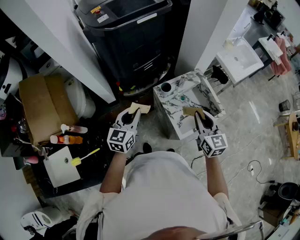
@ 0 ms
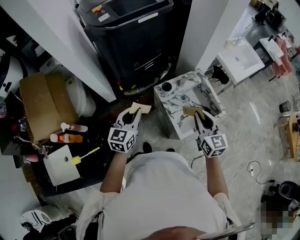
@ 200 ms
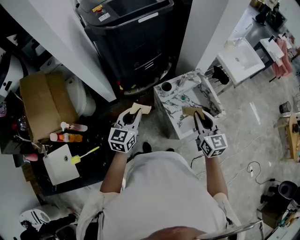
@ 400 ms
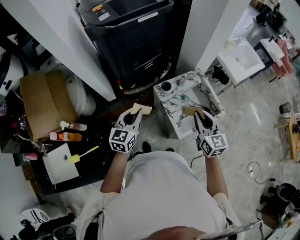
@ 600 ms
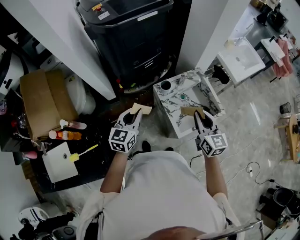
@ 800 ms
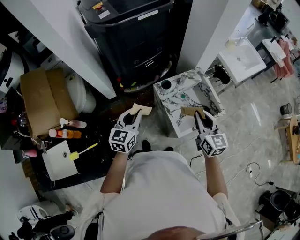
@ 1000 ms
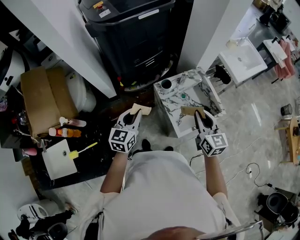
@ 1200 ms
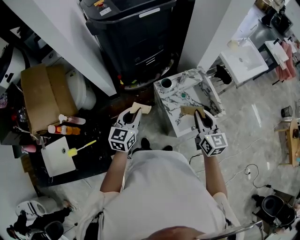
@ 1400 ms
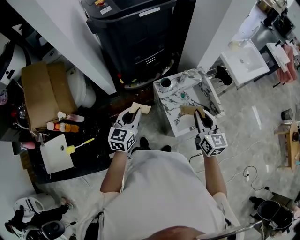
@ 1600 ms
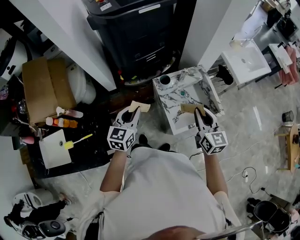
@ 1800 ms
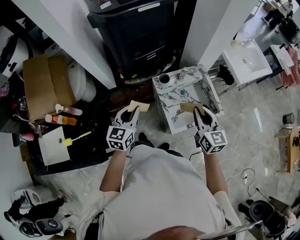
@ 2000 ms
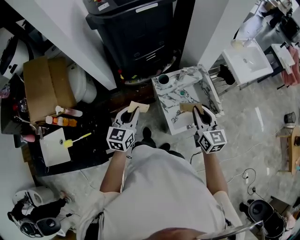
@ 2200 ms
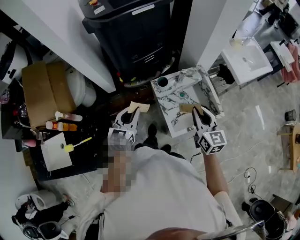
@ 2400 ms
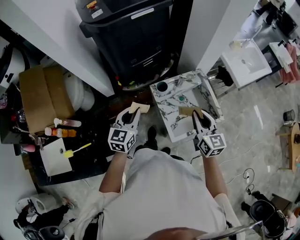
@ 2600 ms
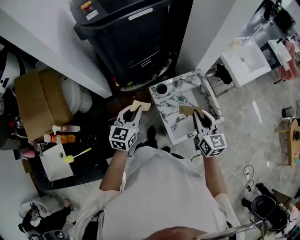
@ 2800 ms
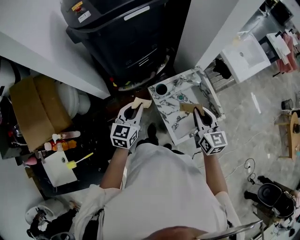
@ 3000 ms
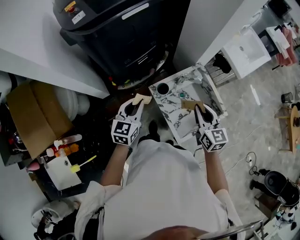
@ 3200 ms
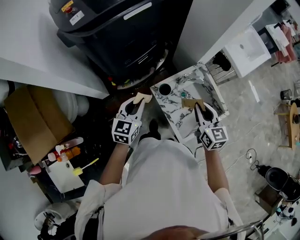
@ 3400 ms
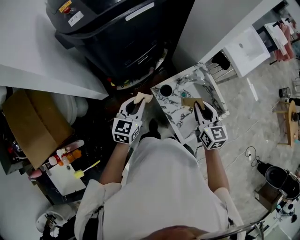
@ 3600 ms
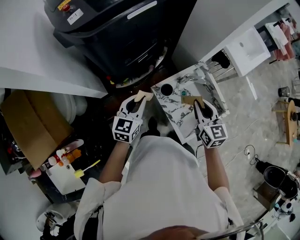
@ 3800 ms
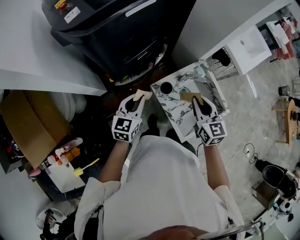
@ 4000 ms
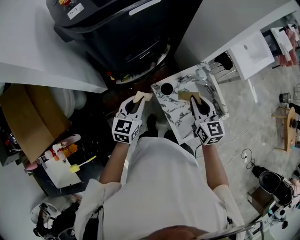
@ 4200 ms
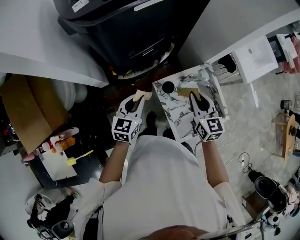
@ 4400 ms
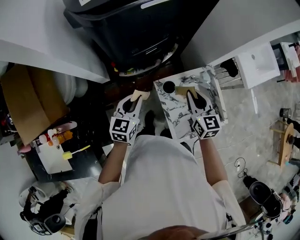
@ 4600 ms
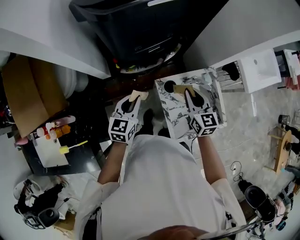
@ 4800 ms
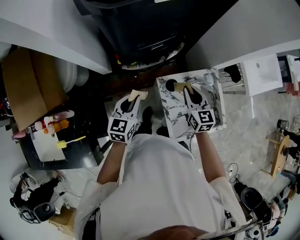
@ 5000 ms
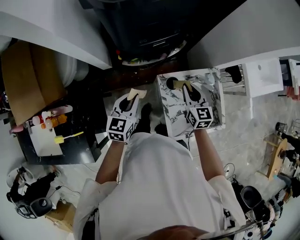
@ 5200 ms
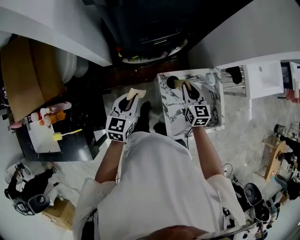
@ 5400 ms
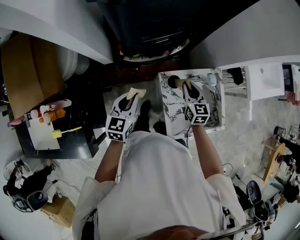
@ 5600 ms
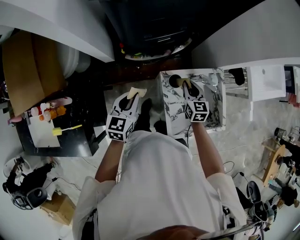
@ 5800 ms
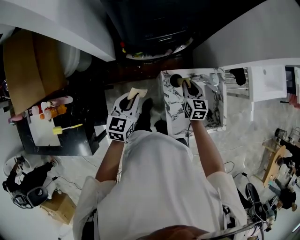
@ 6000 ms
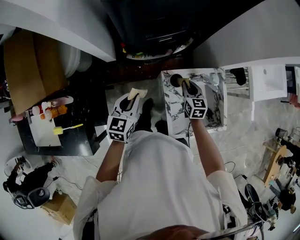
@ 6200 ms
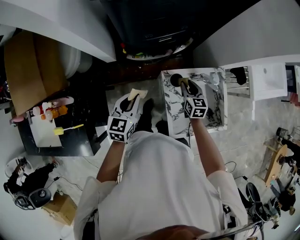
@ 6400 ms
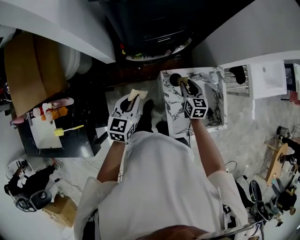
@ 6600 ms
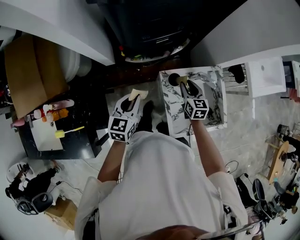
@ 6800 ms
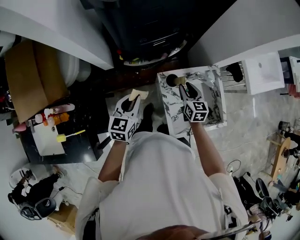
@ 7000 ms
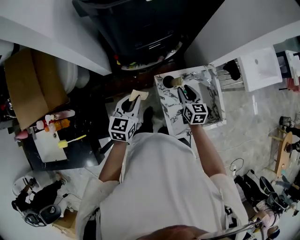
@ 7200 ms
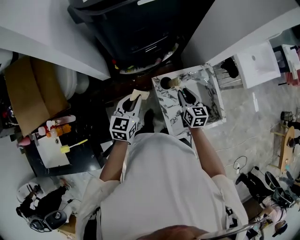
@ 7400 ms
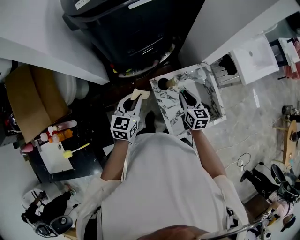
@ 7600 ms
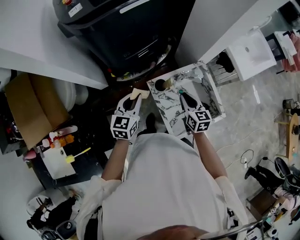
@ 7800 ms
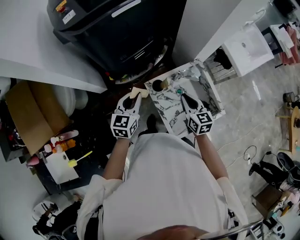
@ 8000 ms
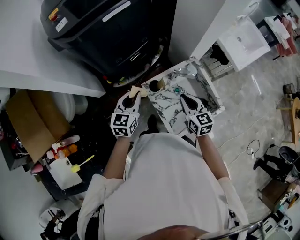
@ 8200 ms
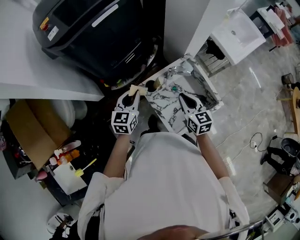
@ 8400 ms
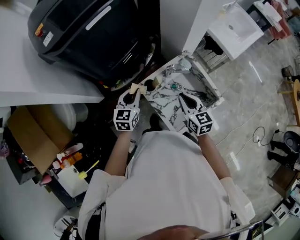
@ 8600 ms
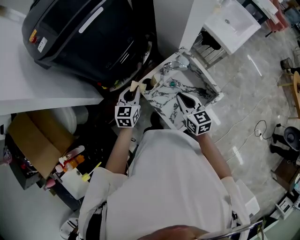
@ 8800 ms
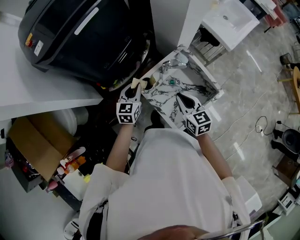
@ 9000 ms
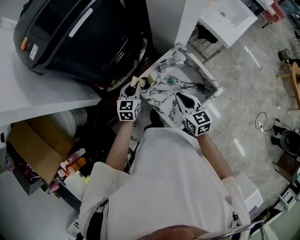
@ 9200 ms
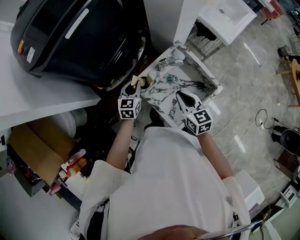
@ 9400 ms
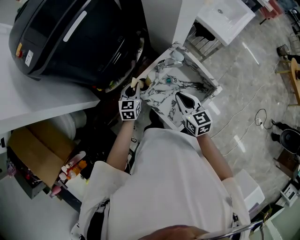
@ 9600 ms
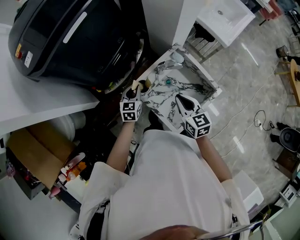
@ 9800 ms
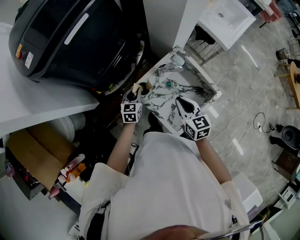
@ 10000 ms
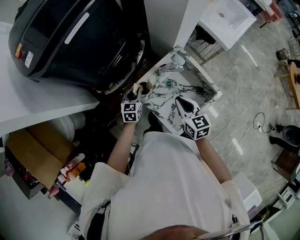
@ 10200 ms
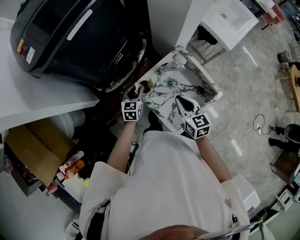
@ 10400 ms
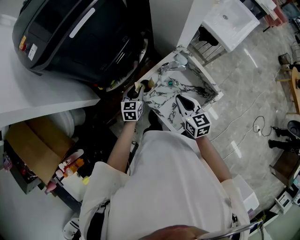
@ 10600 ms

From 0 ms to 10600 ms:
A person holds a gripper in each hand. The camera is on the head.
From 0 ms to 1600 ms: The grippers stay close to where they were, moving slightly.
From 1600 ms to 3000 ms: The grippers both shift forward by some 10 cm.
From 3000 ms to 4600 ms: The right gripper heads forward and to the left, covering some 15 cm. Meanwhile the left gripper is displaced forward and to the left by some 10 cm.
From 4600 ms to 6000 ms: The right gripper is displaced downward by some 15 cm. The left gripper shifts by approximately 5 cm.
From 6000 ms to 7600 ms: The right gripper heads backward, upward and to the right, covering approximately 10 cm. Meanwhile the left gripper goes some 5 cm to the right.
From 7600 ms to 9000 ms: The right gripper shifts approximately 10 cm backward and to the right; the left gripper travels to the right, forward and downward by approximately 15 cm.
From 9000 ms to 10600 ms: The left gripper heads downward, covering some 10 cm.

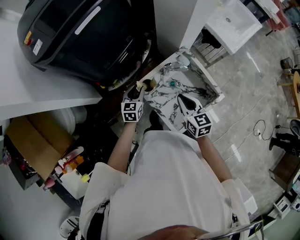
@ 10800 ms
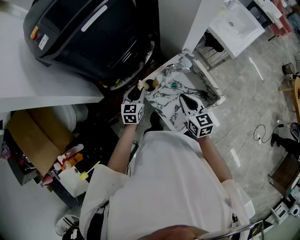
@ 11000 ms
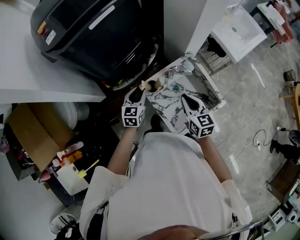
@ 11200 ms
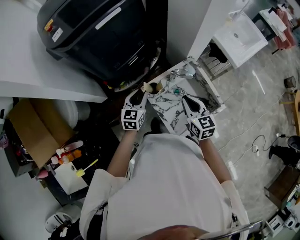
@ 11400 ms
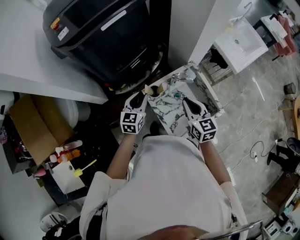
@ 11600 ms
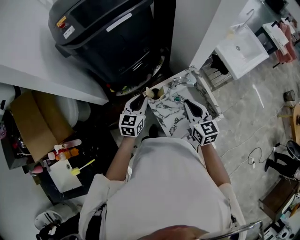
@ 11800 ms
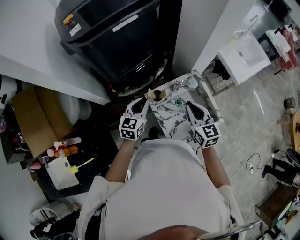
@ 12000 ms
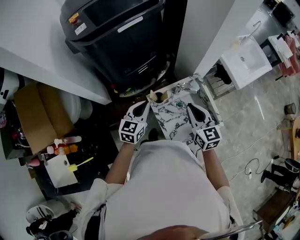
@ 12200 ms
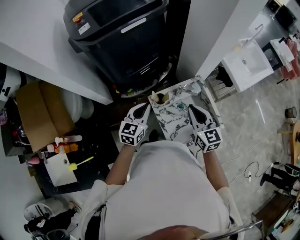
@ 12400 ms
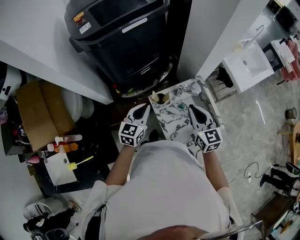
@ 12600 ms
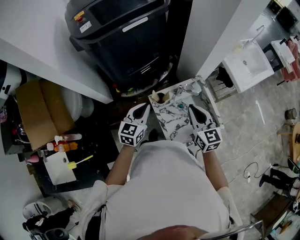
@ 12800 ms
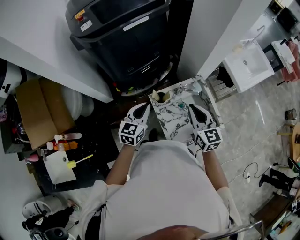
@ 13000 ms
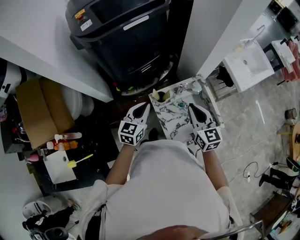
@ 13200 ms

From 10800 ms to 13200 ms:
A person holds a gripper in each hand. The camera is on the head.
From 10800 ms to 12000 ms: The left gripper heads upward, covering roughly 15 cm, and closes its fingers, while the right gripper is displaced upward by roughly 10 cm.
From 12000 ms to 13200 ms: The grippers make only small movements.

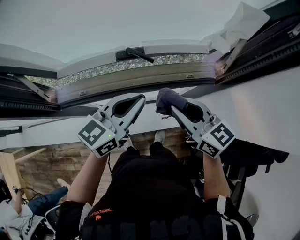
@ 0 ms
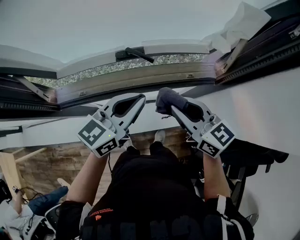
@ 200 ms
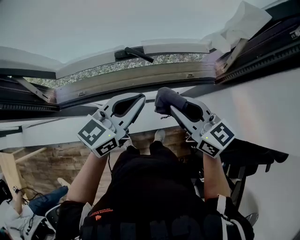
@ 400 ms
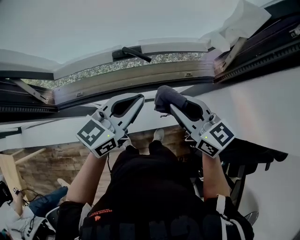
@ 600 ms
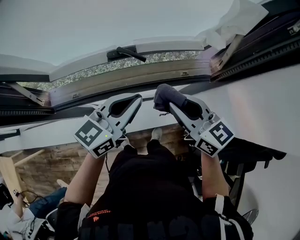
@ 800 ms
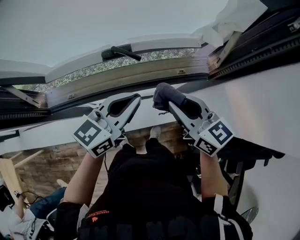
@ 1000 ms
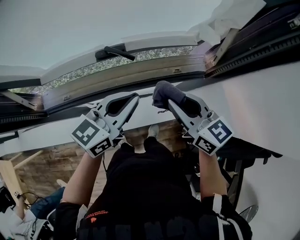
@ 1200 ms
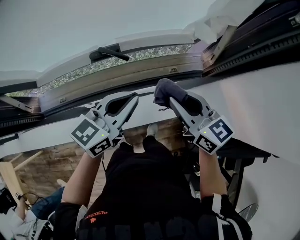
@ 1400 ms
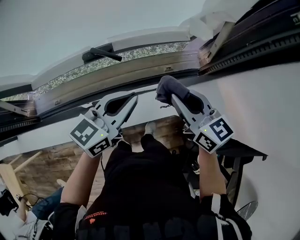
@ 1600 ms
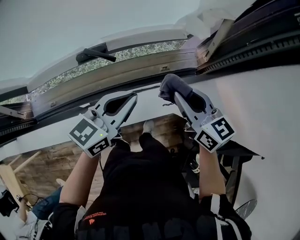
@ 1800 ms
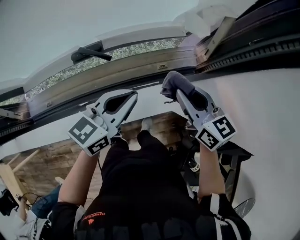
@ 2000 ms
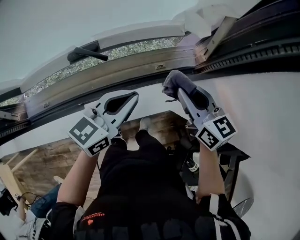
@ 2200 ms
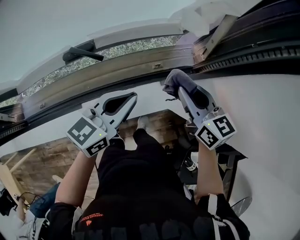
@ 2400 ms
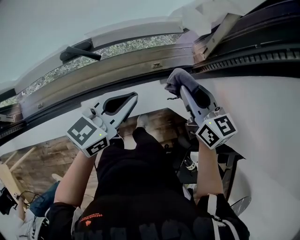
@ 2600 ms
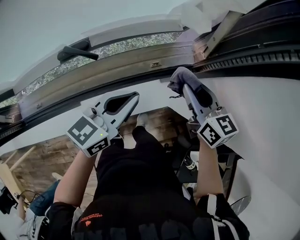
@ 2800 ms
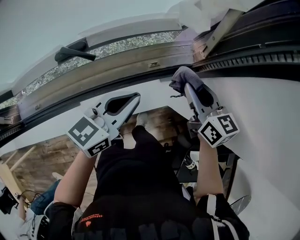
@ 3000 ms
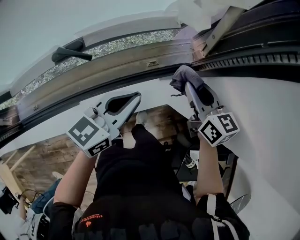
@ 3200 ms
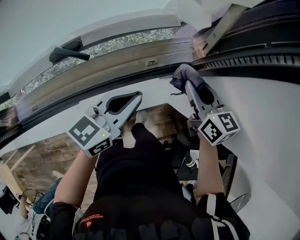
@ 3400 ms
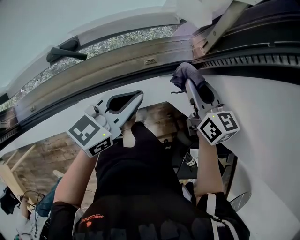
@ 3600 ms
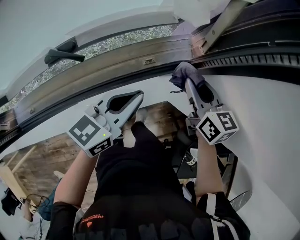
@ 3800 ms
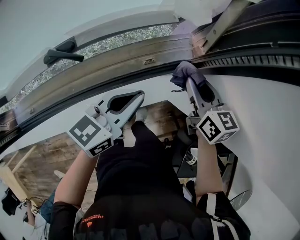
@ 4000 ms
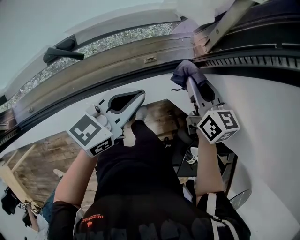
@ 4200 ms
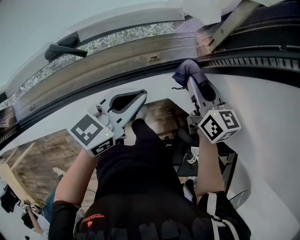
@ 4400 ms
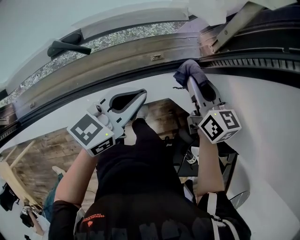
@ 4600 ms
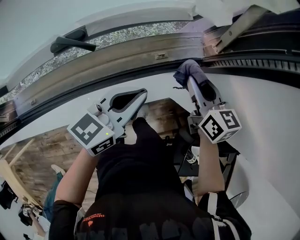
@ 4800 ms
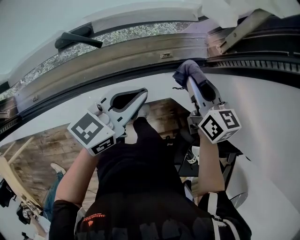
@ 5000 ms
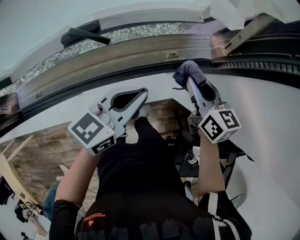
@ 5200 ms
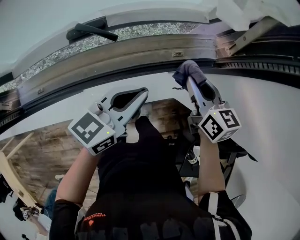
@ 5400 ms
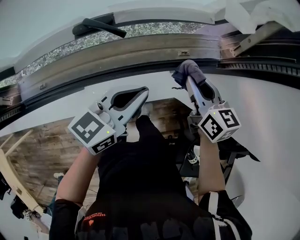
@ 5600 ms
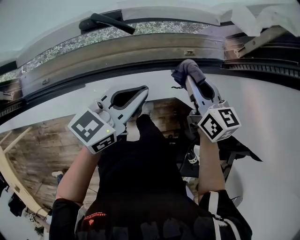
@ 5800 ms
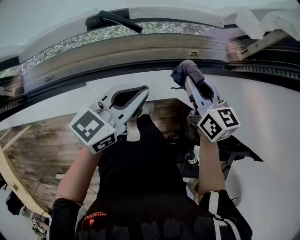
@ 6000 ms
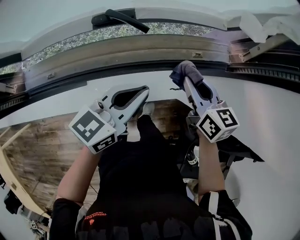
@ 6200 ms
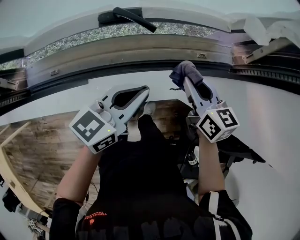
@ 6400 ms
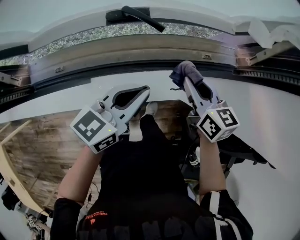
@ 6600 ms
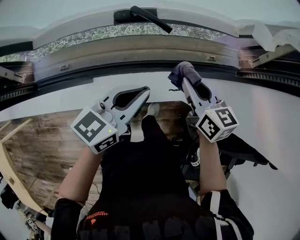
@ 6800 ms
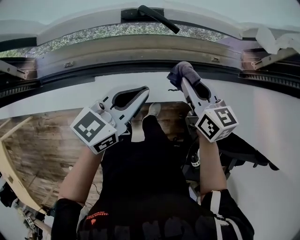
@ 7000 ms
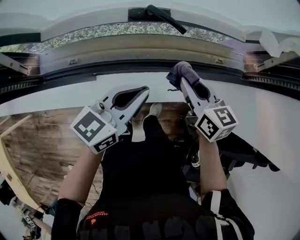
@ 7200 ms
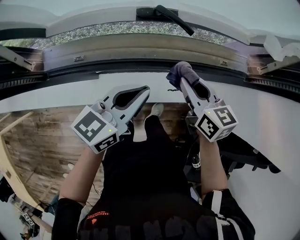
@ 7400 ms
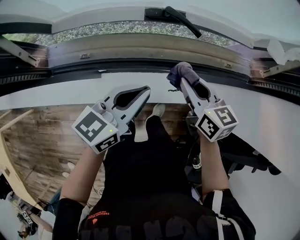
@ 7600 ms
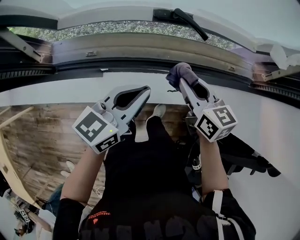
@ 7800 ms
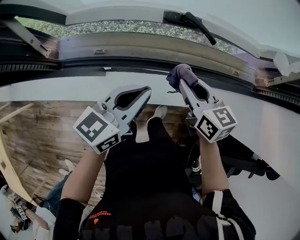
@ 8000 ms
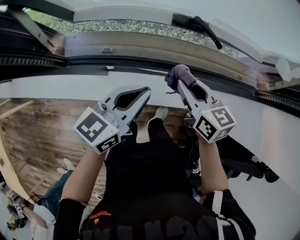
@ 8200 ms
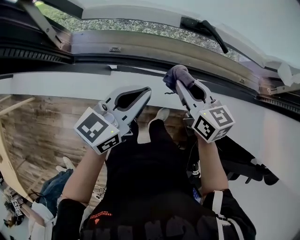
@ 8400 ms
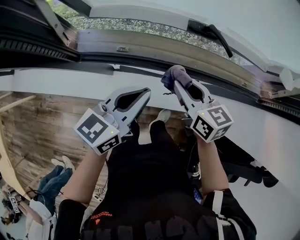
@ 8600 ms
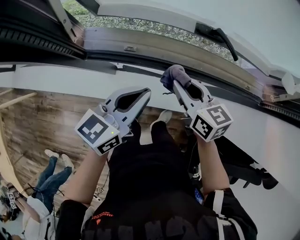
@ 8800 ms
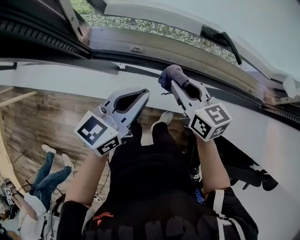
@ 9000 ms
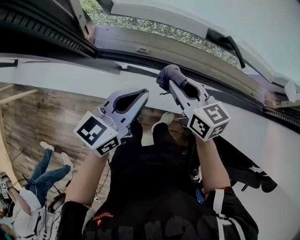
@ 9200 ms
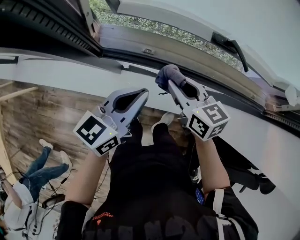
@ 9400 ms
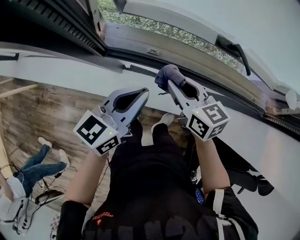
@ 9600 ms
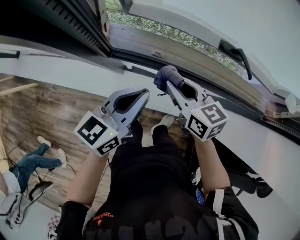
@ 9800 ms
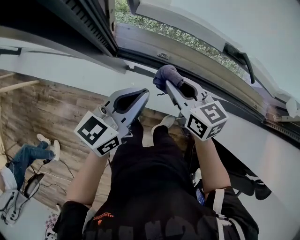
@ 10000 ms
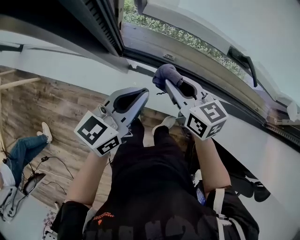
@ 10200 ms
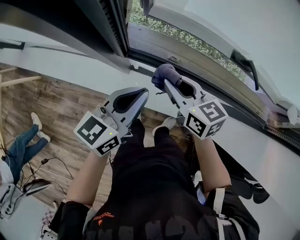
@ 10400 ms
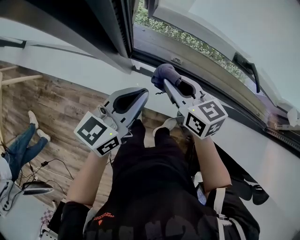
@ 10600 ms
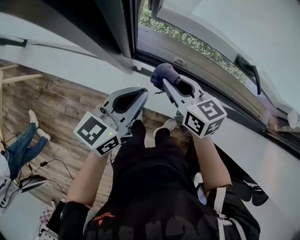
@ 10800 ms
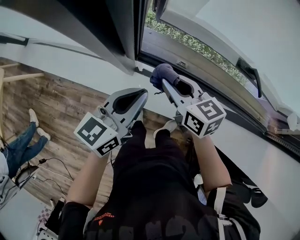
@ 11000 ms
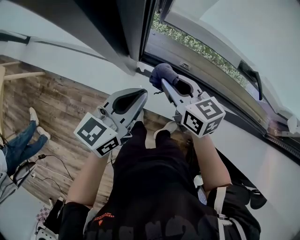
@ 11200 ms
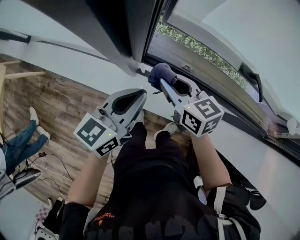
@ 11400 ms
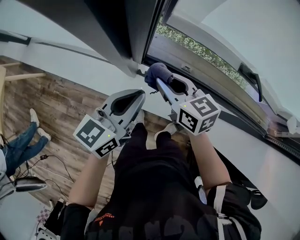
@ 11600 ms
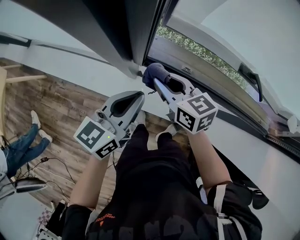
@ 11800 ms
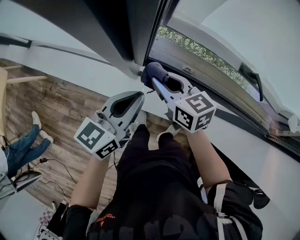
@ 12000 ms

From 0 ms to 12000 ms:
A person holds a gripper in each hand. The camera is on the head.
From 0 ms to 1600 ms: The right gripper is displaced to the right and forward by about 10 cm. The left gripper goes roughly 10 cm to the right.
From 1600 ms to 3000 ms: The right gripper goes approximately 15 cm to the right, downward and forward. The left gripper moves to the right and downward, about 10 cm.
From 3000 ms to 4400 ms: The grippers make only small movements.
From 4400 ms to 6000 ms: The two grippers go roughly 15 cm to the left and backward.
From 6000 ms to 7600 ms: Both grippers move to the left, approximately 15 cm.
From 7600 ms to 9000 ms: The two grippers go about 15 cm to the left.
From 9000 ms to 10400 ms: Both grippers move to the left, about 10 cm.
From 10400 ms to 12000 ms: The grippers both shift to the left by roughly 10 cm.
